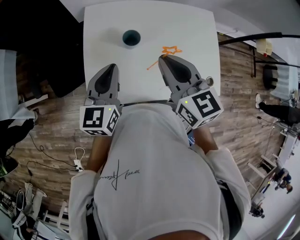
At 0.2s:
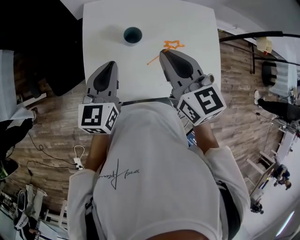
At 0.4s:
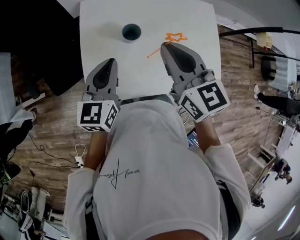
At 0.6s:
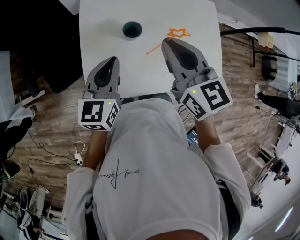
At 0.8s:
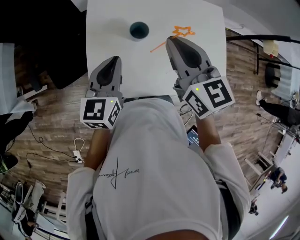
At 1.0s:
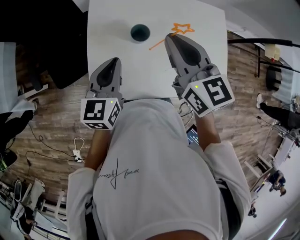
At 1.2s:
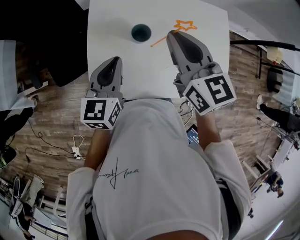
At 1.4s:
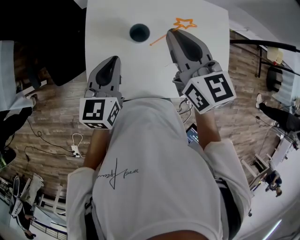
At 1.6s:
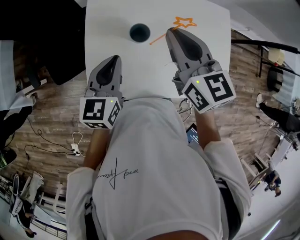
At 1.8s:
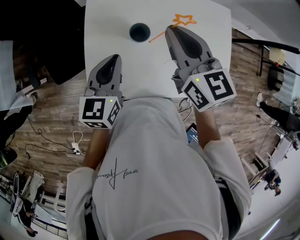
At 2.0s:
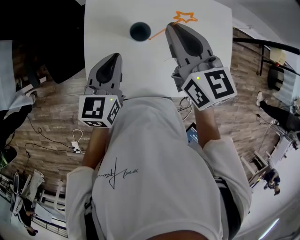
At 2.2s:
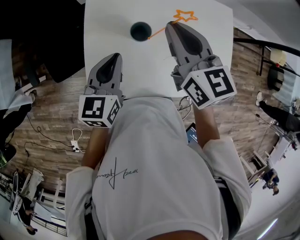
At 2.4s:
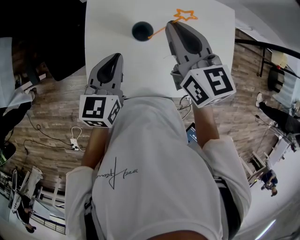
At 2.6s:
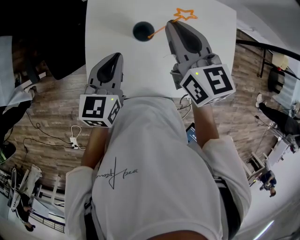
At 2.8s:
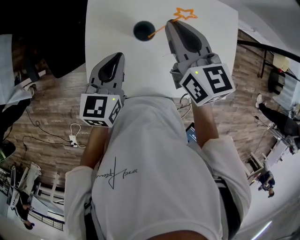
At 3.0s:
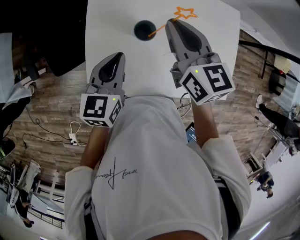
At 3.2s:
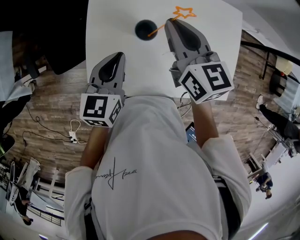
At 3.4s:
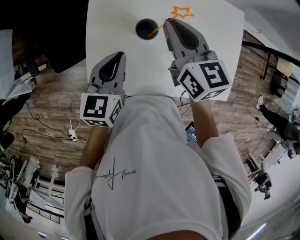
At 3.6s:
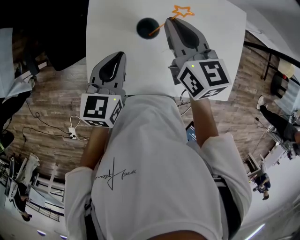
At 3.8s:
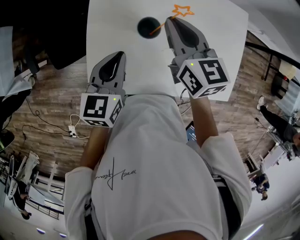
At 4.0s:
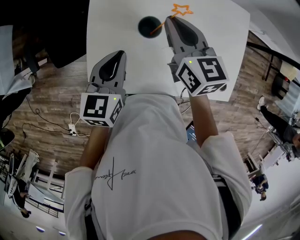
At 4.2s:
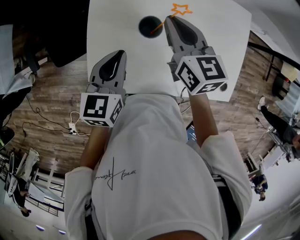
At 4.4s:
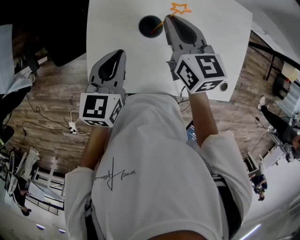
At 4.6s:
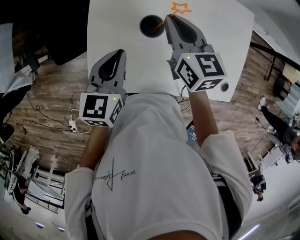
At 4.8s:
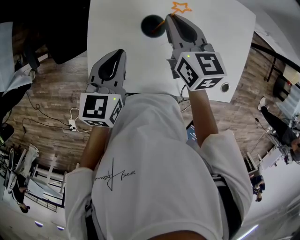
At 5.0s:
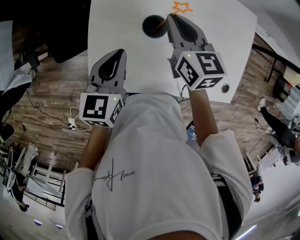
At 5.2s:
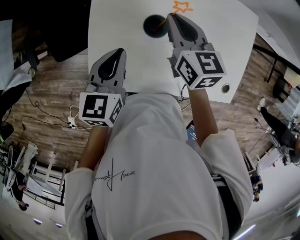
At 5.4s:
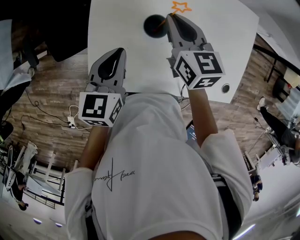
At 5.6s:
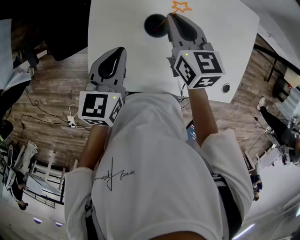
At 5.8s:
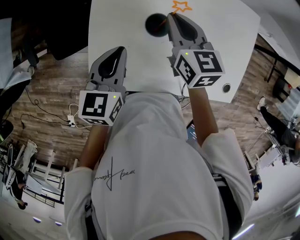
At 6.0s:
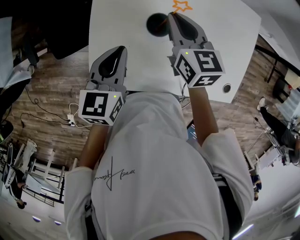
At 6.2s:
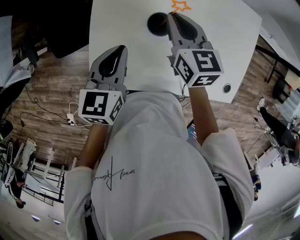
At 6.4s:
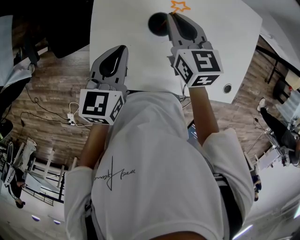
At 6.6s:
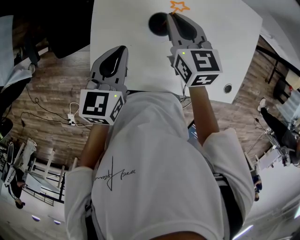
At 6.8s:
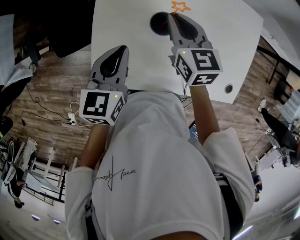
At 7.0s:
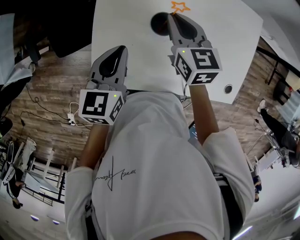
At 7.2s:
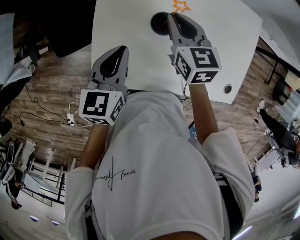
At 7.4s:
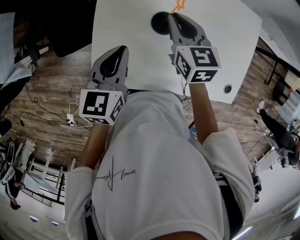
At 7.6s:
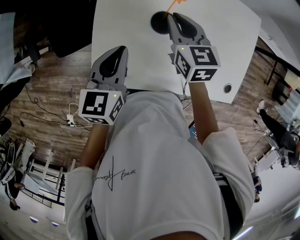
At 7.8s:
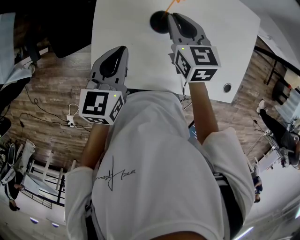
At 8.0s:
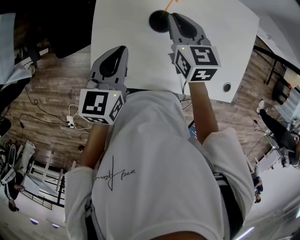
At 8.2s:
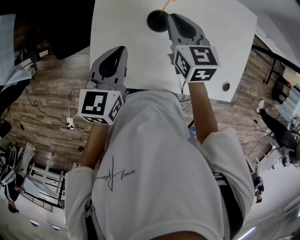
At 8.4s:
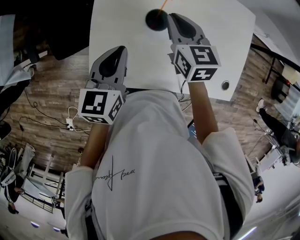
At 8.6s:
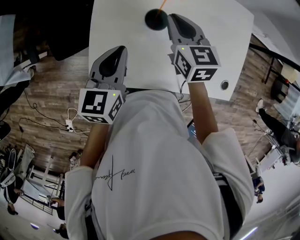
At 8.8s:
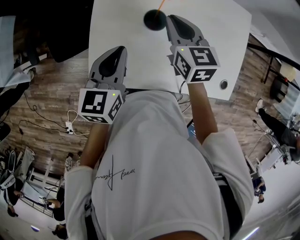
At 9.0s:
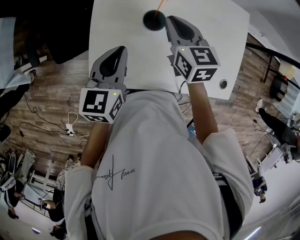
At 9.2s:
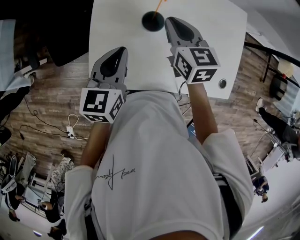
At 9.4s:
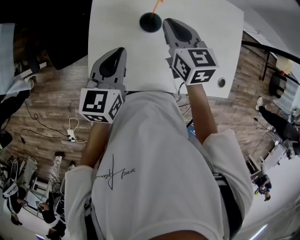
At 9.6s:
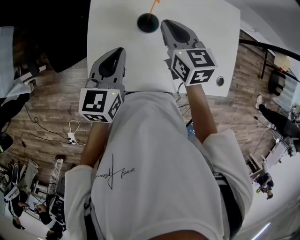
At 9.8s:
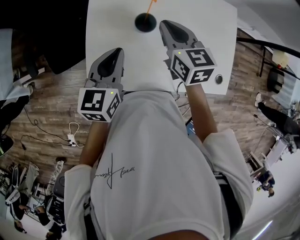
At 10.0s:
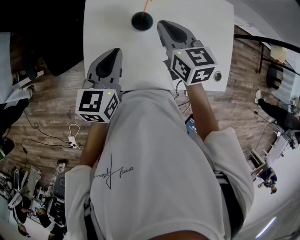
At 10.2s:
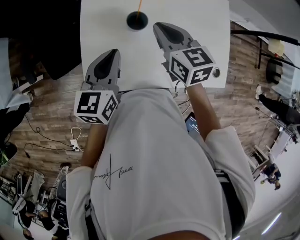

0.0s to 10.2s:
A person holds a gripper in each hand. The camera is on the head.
0.0s to 1.4s: The right gripper shifts approximately 10 cm forward.
1.4s to 3.0s: The right gripper shifts by approximately 5 cm.
3.0s to 4.4s: The right gripper goes some 5 cm downward.
4.4s to 8.8s: The grippers stay close to where they were, moving slightly.
8.8s to 10.2s: The right gripper changes place by about 5 cm.

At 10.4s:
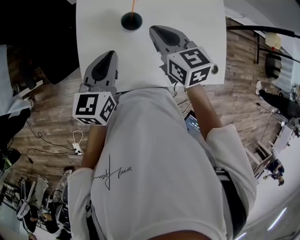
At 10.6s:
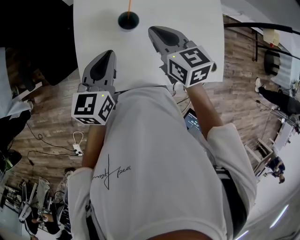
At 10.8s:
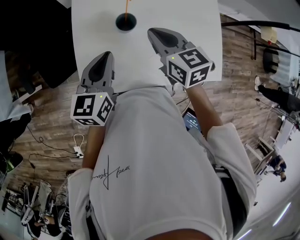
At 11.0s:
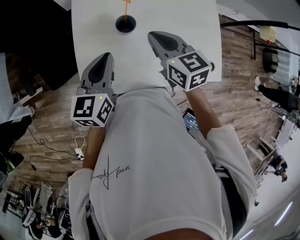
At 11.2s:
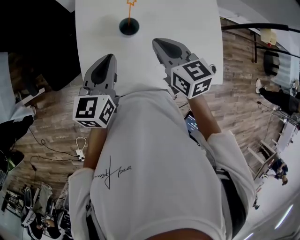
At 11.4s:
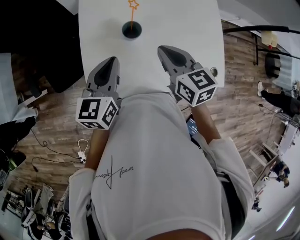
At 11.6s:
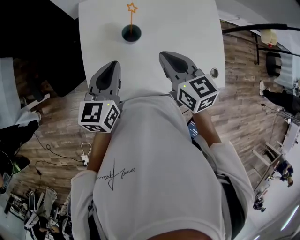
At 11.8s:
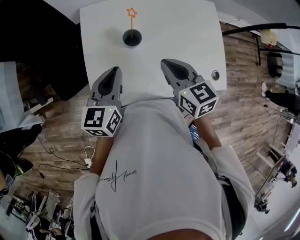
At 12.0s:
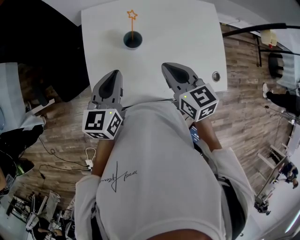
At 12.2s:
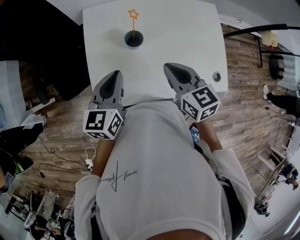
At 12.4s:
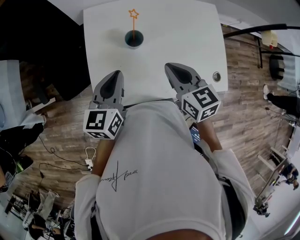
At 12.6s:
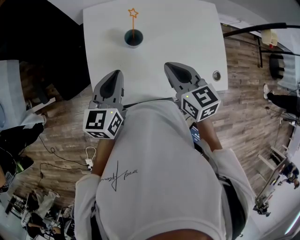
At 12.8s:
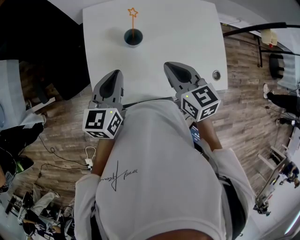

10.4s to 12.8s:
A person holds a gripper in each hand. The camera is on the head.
10.4s to 11.6s: The right gripper travels backward by approximately 5 cm.
11.6s to 12.8s: The grippers make only small movements.

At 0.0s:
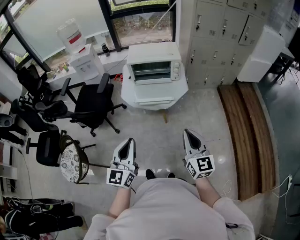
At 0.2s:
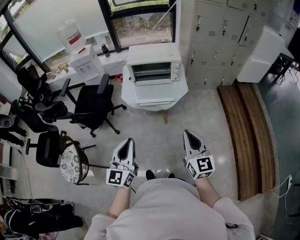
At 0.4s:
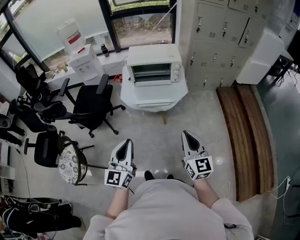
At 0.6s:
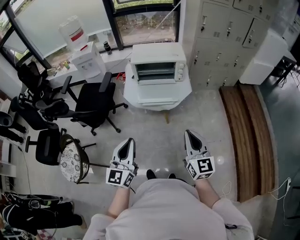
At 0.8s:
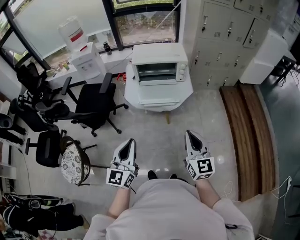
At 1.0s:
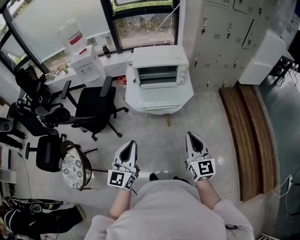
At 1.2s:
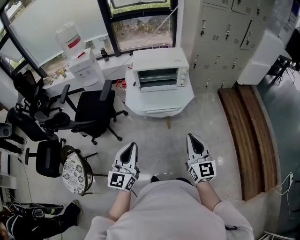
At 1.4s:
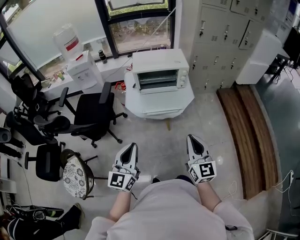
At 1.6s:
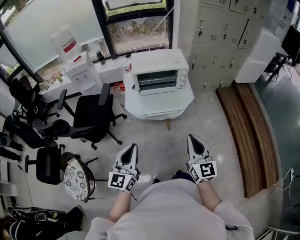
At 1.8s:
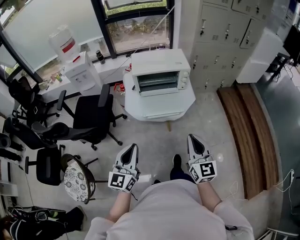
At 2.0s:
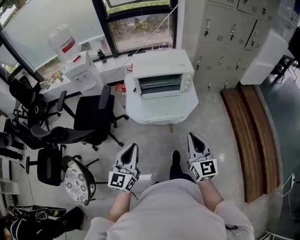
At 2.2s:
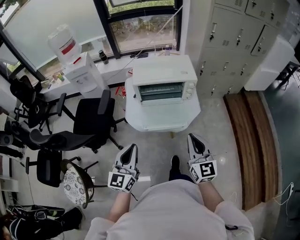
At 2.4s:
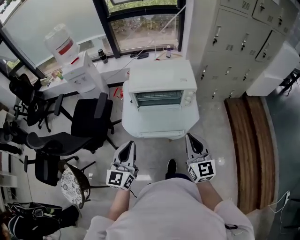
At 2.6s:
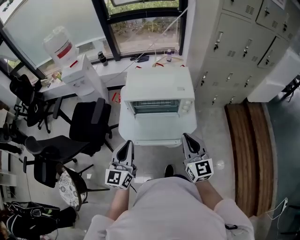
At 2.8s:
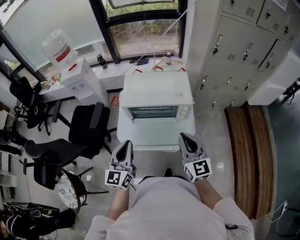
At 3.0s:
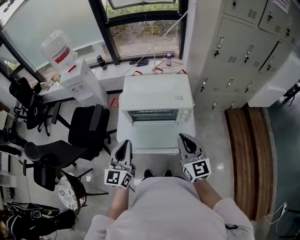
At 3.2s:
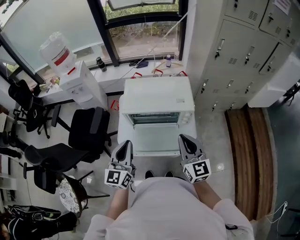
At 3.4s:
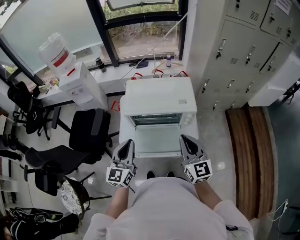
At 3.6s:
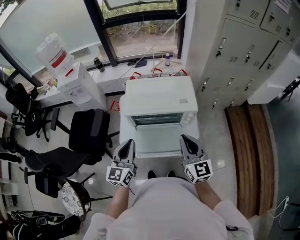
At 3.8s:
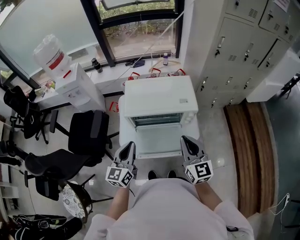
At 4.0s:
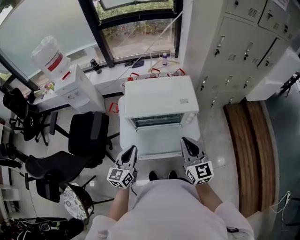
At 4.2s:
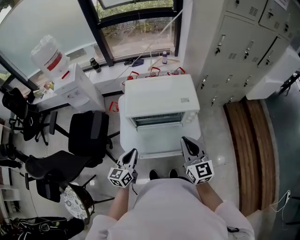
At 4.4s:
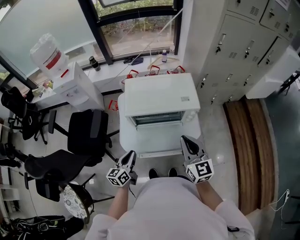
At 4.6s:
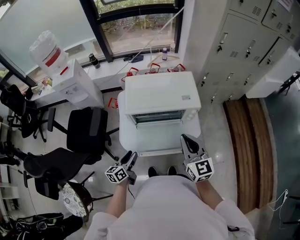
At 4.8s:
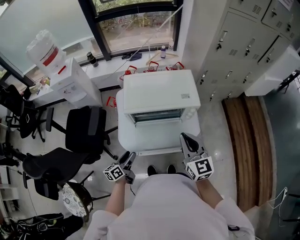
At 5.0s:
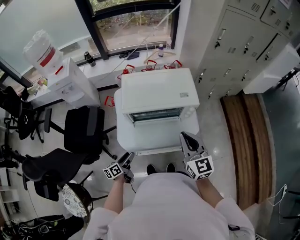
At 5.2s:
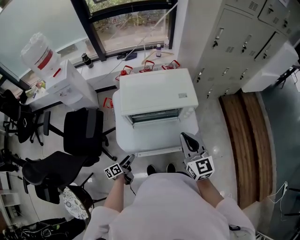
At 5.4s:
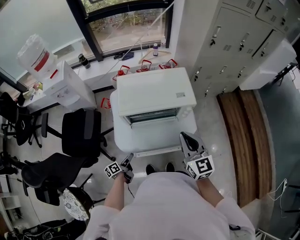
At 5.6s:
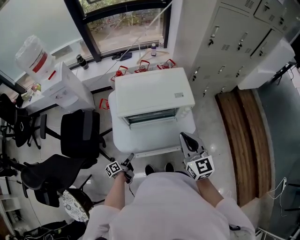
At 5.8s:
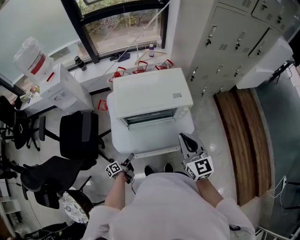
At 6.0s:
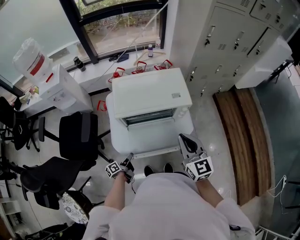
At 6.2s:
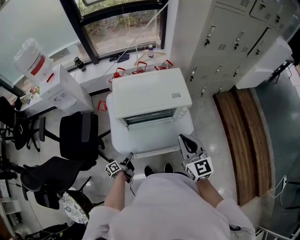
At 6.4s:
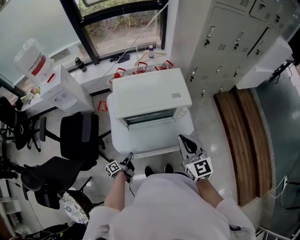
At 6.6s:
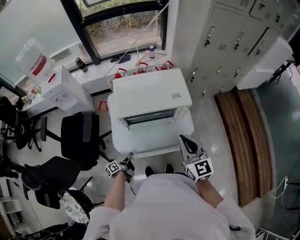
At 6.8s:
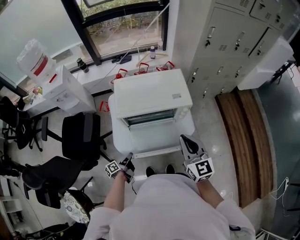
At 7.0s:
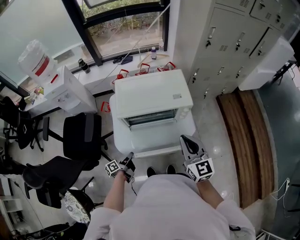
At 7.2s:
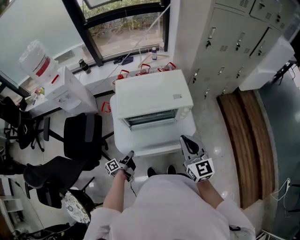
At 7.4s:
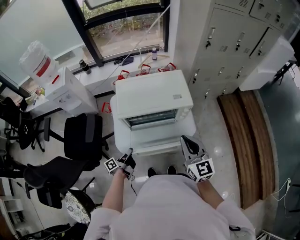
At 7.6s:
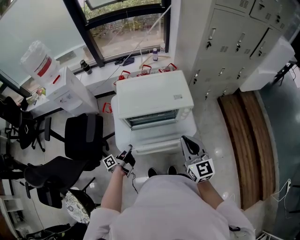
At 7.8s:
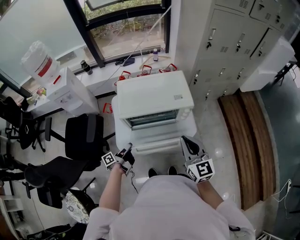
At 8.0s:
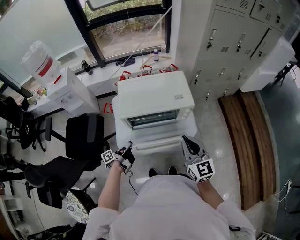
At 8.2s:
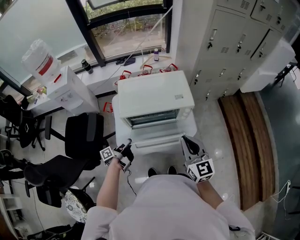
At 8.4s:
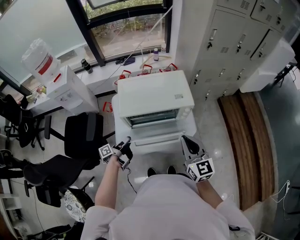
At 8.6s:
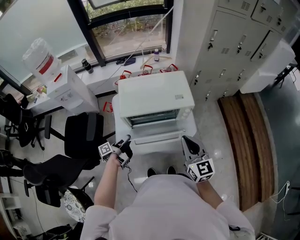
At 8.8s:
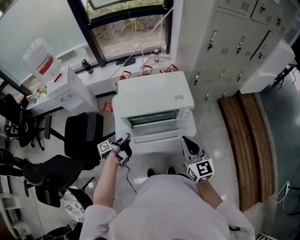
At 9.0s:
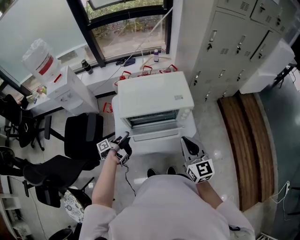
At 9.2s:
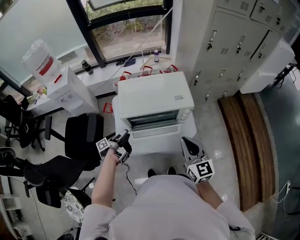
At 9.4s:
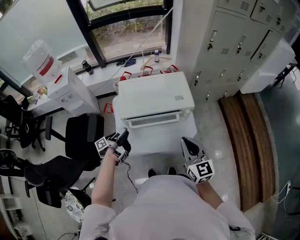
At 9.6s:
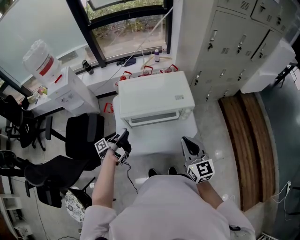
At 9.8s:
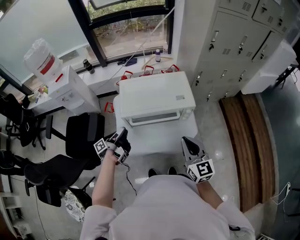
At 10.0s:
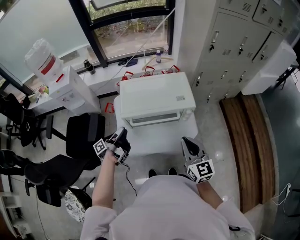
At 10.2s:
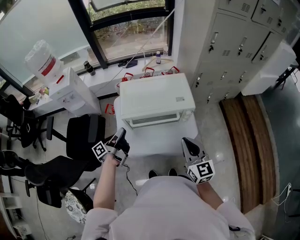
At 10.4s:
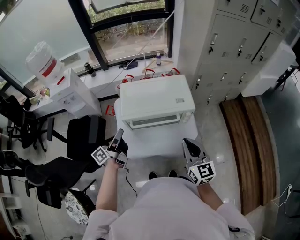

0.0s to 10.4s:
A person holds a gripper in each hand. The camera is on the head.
0.0s to 1.4s: The left gripper shifts about 10 cm to the left and forward. Meanwhile the right gripper goes some 5 cm to the left.
1.4s to 3.0s: Both grippers travel together forward, some 35 cm.
3.0s to 4.4s: The left gripper is displaced downward by some 20 cm, and changes its angle by about 30 degrees.
4.4s to 6.0s: The left gripper heads downward, covering about 20 cm, rolls counterclockwise, seen from behind, by approximately 50 degrees, and opens.
6.0s to 7.4s: The left gripper moves upward, approximately 10 cm, and closes up.
7.4s to 9.0s: The left gripper shifts about 10 cm upward and forward.
9.0s to 10.4s: The left gripper is displaced upward by some 15 cm, and swivels some 40 degrees.

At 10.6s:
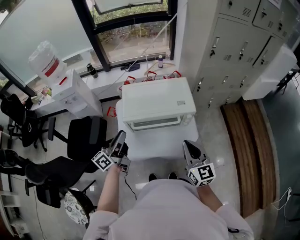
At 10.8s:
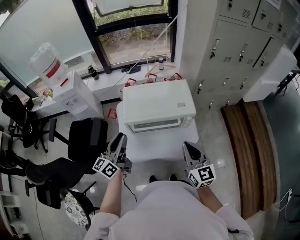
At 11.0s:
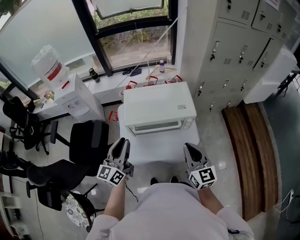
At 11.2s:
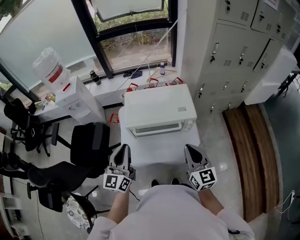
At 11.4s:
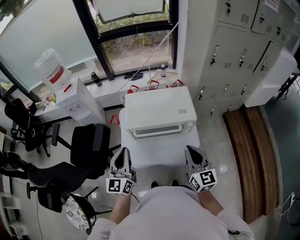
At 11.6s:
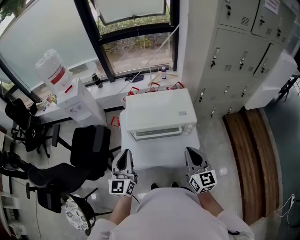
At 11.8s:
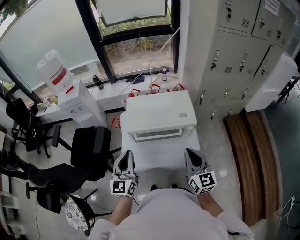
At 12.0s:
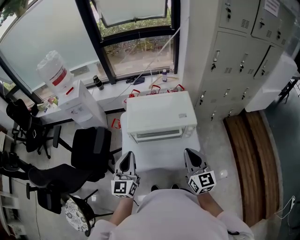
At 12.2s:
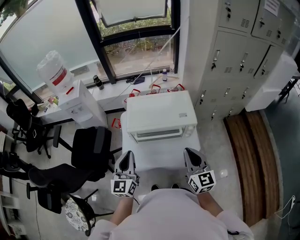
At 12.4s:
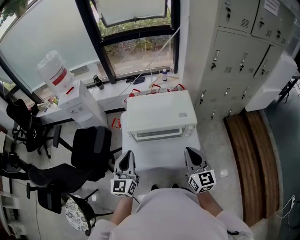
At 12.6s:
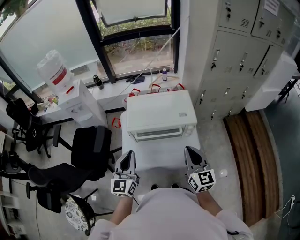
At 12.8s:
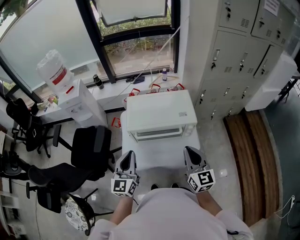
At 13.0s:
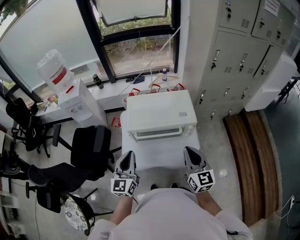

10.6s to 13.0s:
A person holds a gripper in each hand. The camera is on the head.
10.6s to 11.8s: The left gripper shifts some 5 cm backward, rolls clockwise, seen from behind, by about 50 degrees, and closes.
11.8s to 13.0s: Both grippers stay about where they are.
